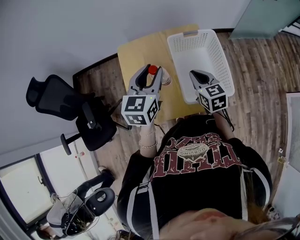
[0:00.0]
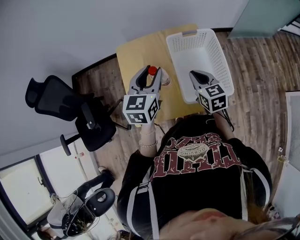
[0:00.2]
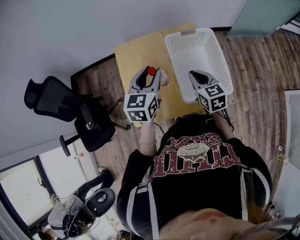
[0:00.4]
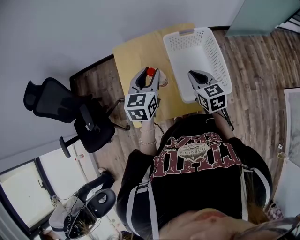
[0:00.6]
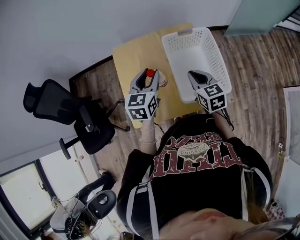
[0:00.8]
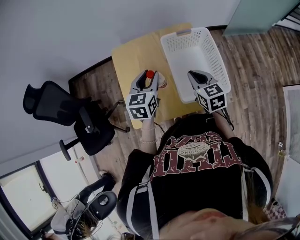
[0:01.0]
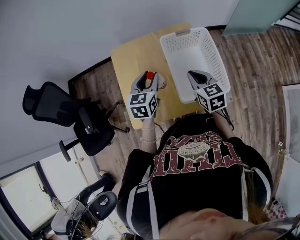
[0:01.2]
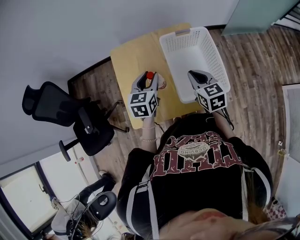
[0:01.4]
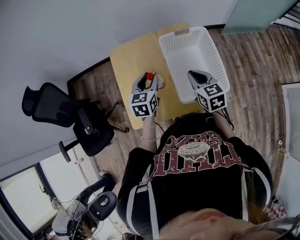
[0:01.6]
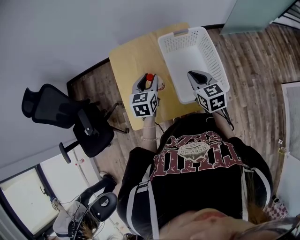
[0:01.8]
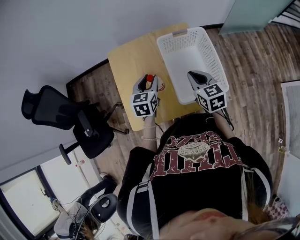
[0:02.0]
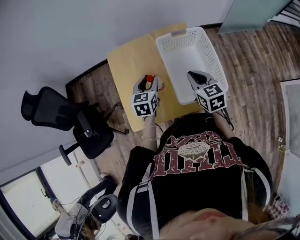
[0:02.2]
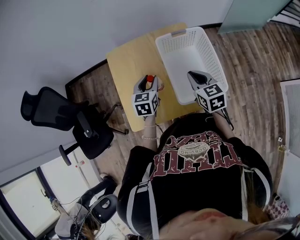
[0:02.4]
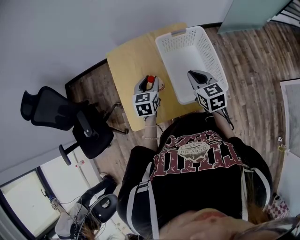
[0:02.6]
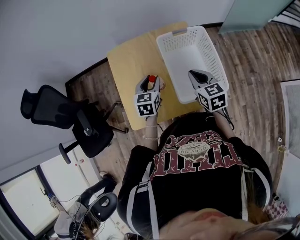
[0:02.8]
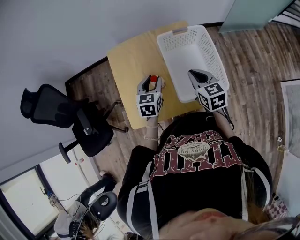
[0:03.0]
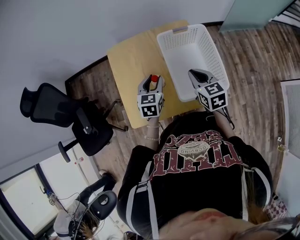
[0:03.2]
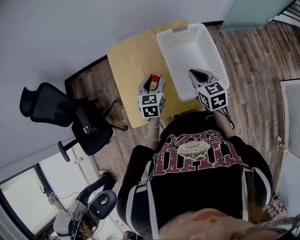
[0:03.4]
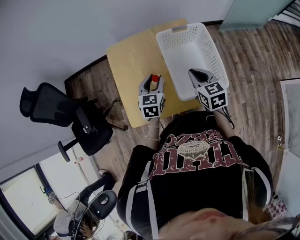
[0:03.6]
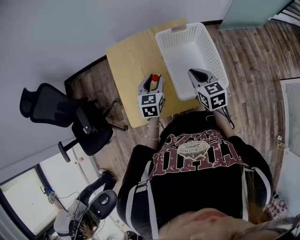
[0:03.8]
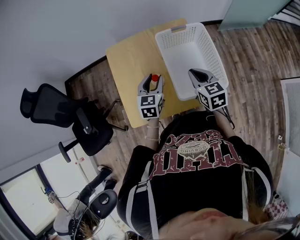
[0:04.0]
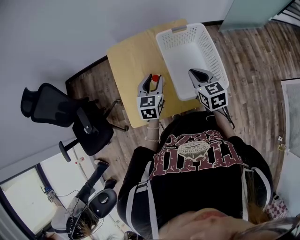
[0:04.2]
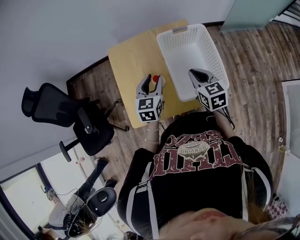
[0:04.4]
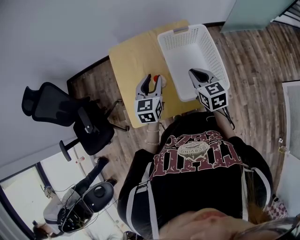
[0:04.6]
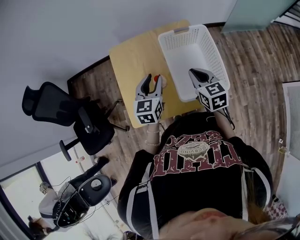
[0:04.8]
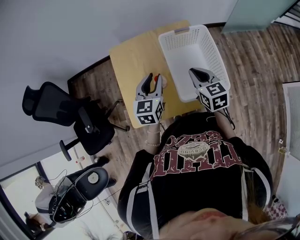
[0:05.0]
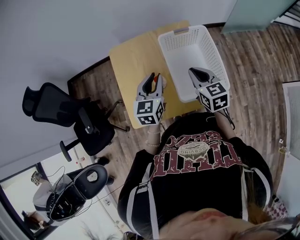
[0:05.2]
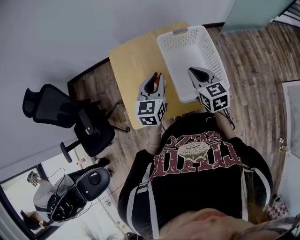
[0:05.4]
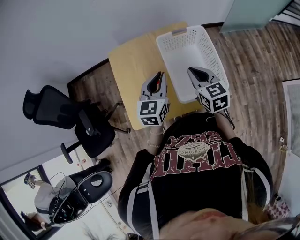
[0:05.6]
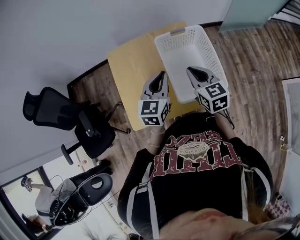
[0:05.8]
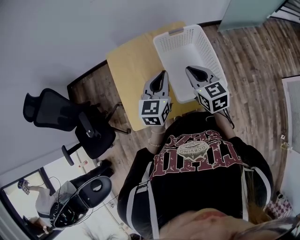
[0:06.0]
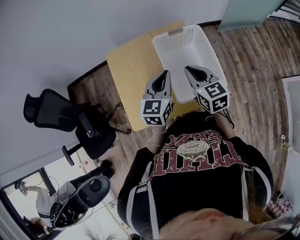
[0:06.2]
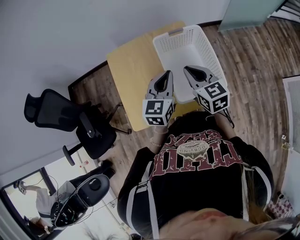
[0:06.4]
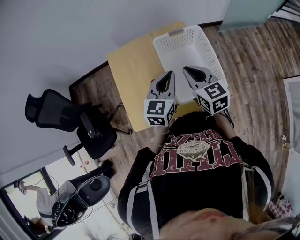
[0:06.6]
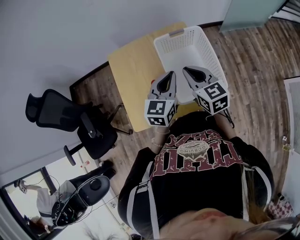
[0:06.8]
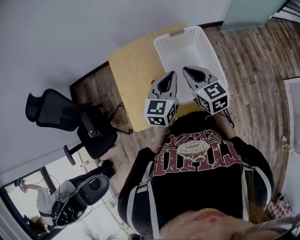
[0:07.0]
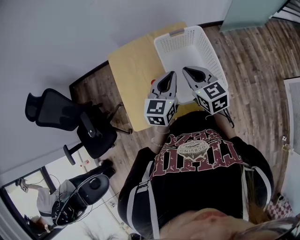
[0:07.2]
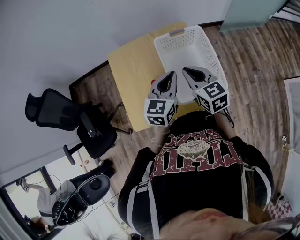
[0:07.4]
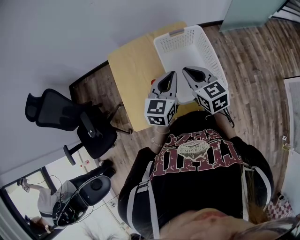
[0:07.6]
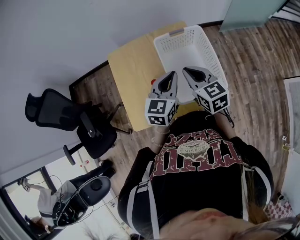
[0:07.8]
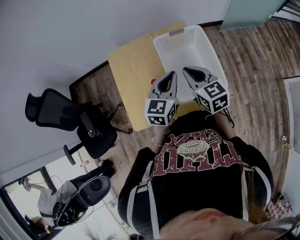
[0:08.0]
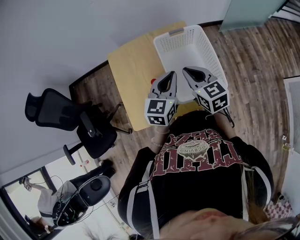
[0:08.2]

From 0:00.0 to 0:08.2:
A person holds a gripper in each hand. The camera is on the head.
From 0:00.0 to 0:01.6: The left gripper travels downward by some 10 cm.
From 0:01.6 to 0:03.2: There are only small adjustments of the grippers.
From 0:03.2 to 0:05.0: The left gripper travels upward by about 5 cm.
From 0:05.0 to 0:06.6: The left gripper moves to the right, about 10 cm, and closes.
From 0:06.6 to 0:08.2: Both grippers stay about where they are.

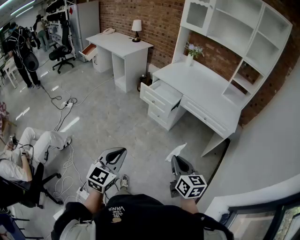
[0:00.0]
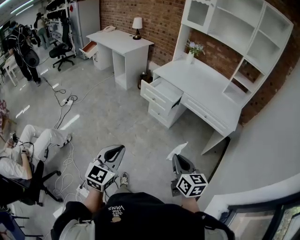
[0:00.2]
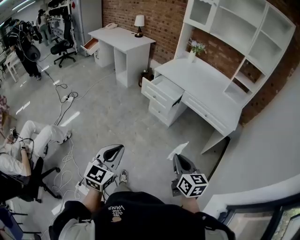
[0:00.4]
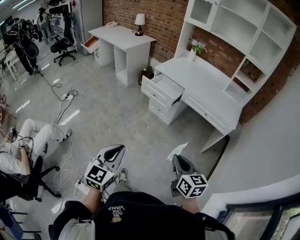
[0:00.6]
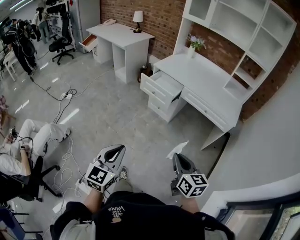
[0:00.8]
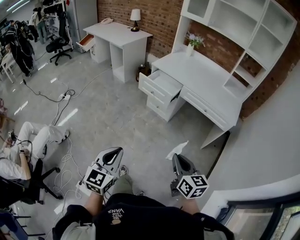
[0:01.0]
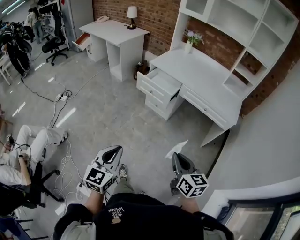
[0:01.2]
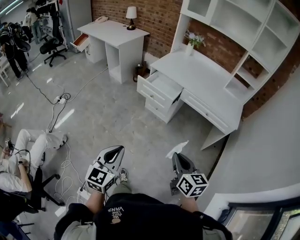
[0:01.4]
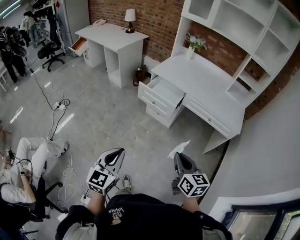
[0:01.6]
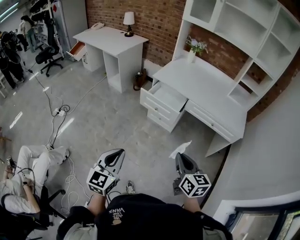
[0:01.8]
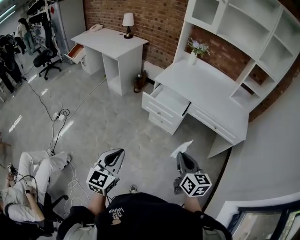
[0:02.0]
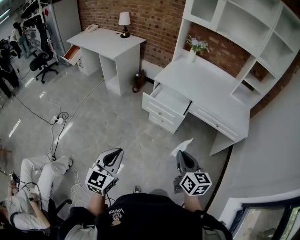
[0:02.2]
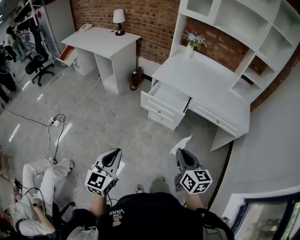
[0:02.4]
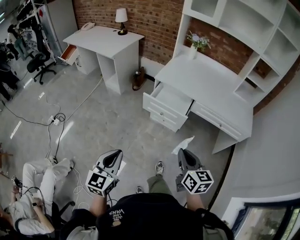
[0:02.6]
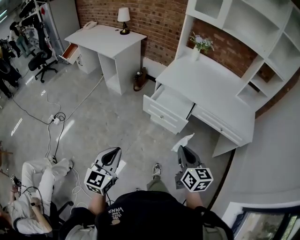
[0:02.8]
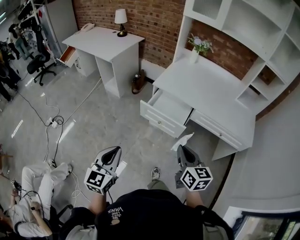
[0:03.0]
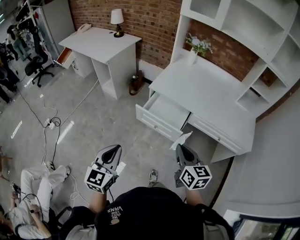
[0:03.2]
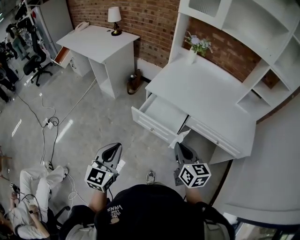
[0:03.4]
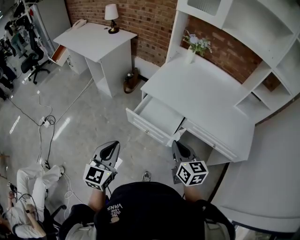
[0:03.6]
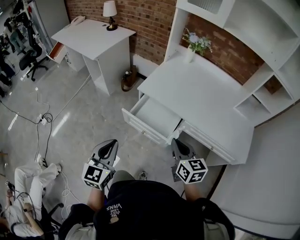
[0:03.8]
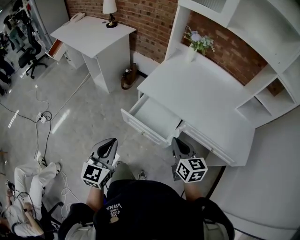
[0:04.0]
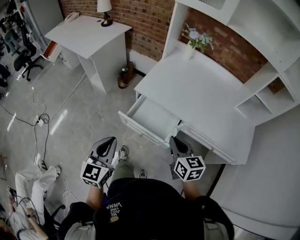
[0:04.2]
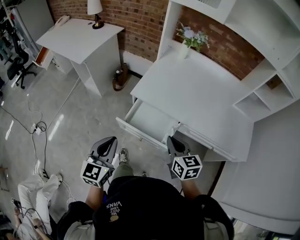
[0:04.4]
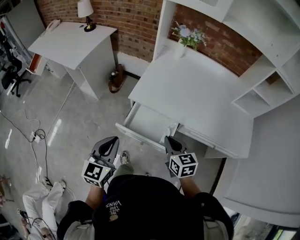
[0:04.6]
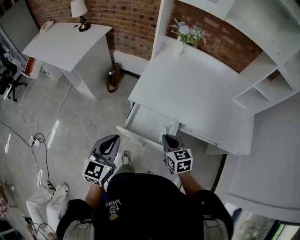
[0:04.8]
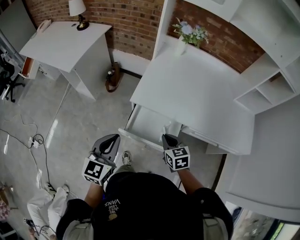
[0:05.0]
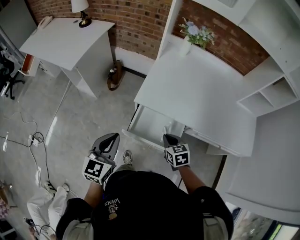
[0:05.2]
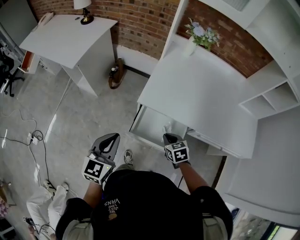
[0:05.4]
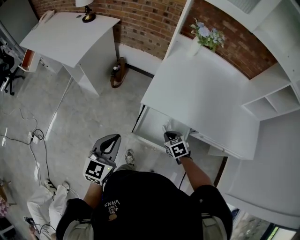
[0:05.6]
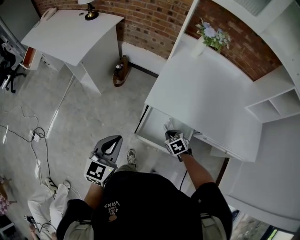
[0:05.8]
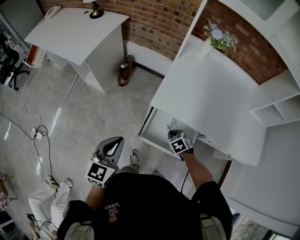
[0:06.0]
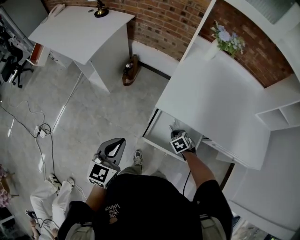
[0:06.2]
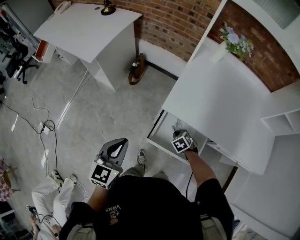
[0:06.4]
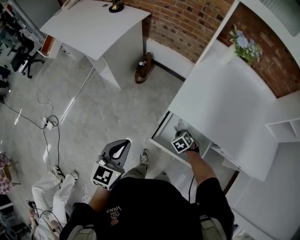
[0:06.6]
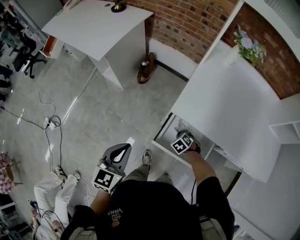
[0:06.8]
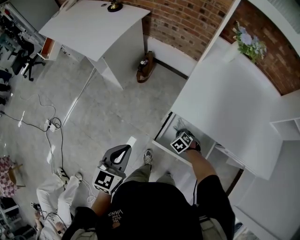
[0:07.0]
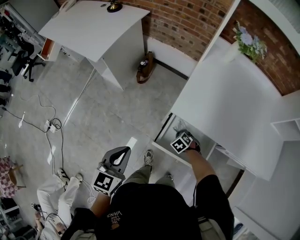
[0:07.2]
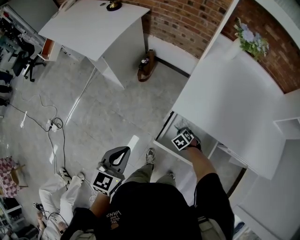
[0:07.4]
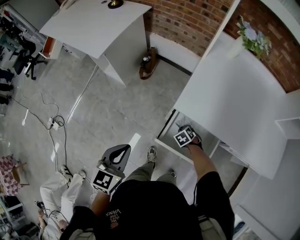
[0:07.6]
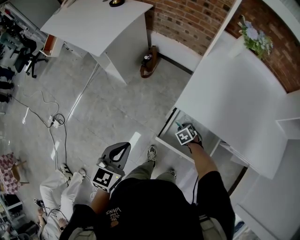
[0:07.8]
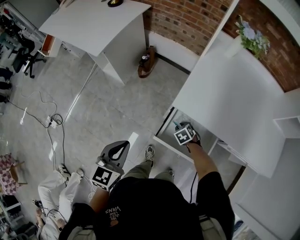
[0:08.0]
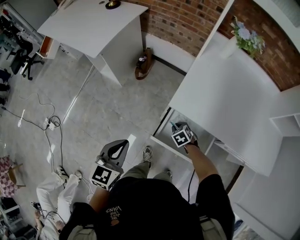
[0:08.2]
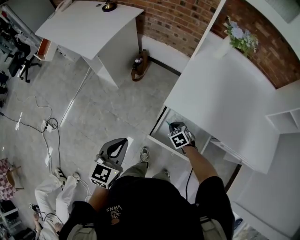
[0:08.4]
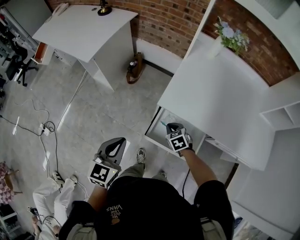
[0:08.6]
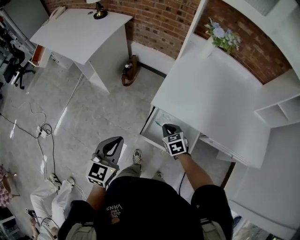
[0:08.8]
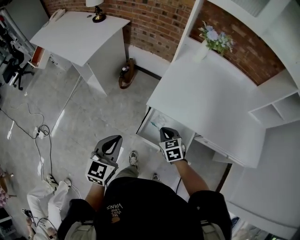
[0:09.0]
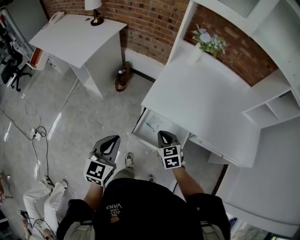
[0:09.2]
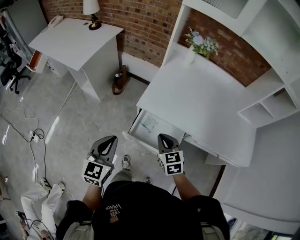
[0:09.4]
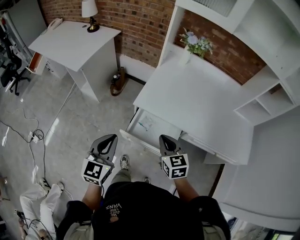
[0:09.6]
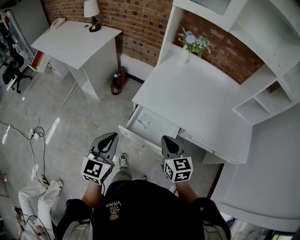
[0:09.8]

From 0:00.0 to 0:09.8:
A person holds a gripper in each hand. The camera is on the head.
From 0:00.0 to 0:01.4: The two grippers go about 10 cm forward.
From 0:01.4 to 0:02.8: Both grippers move forward and to the left, roughly 30 cm.
From 0:02.8 to 0:04.2: The right gripper shifts roughly 30 cm forward. Meanwhile the left gripper moves forward and to the right, approximately 30 cm.
From 0:04.2 to 0:05.6: The left gripper is displaced forward and to the left by roughly 20 cm; the right gripper goes roughly 30 cm downward, forward and to the left, and angles its fingers downward, by some 40 degrees.
From 0:05.6 to 0:07.0: The left gripper ends up some 10 cm from where it was. Meanwhile the right gripper shifts some 15 cm downward, and changes its angle by some 30 degrees.
From 0:07.0 to 0:08.4: The right gripper goes approximately 5 cm upward.
From 0:08.4 to 0:09.8: The left gripper travels to the right, upward and backward by about 20 cm. The right gripper goes roughly 35 cm upward and backward, and points its fingers approximately 40 degrees further upward.

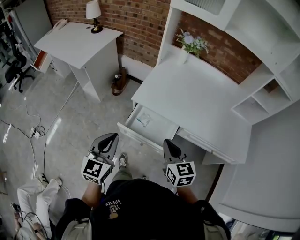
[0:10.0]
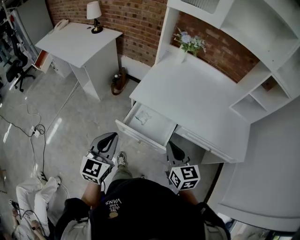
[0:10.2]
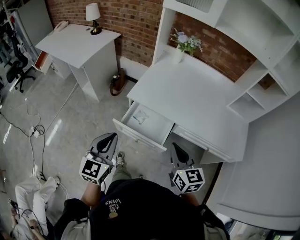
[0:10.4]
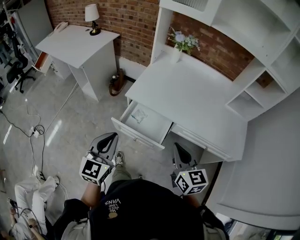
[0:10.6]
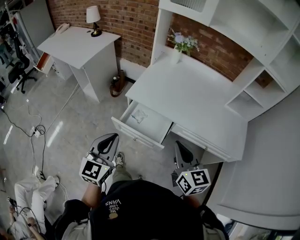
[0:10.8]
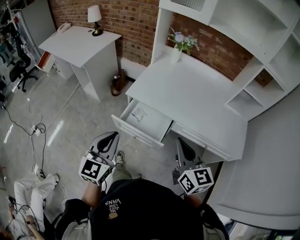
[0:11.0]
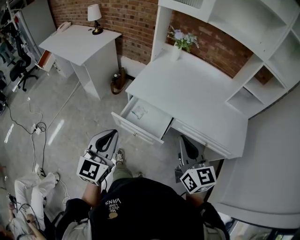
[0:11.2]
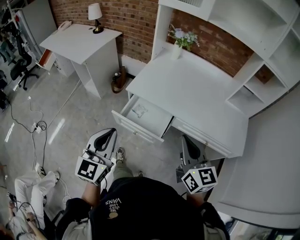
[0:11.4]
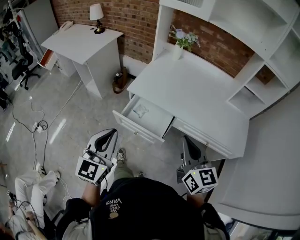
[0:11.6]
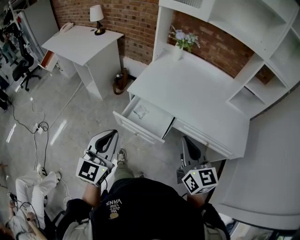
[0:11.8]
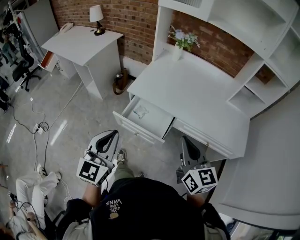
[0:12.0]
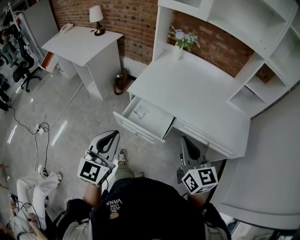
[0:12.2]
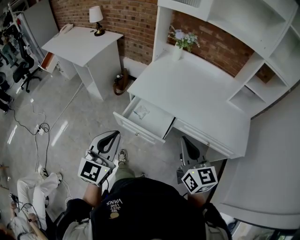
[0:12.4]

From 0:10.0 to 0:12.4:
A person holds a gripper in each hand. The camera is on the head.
From 0:10.0 to 0:11.2: The right gripper goes some 15 cm upward, to the right and backward. The left gripper is displaced backward, to the right and upward by roughly 10 cm.
From 0:11.2 to 0:12.4: There are only small adjustments of the grippers.

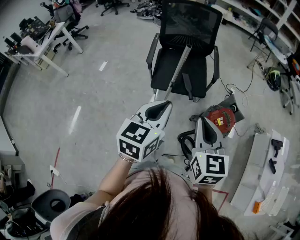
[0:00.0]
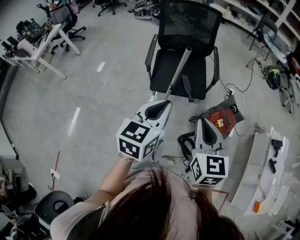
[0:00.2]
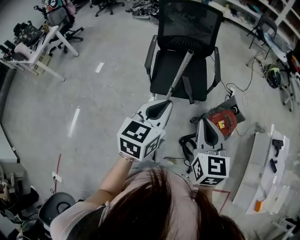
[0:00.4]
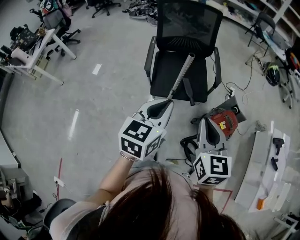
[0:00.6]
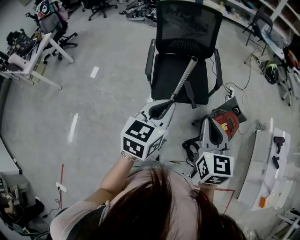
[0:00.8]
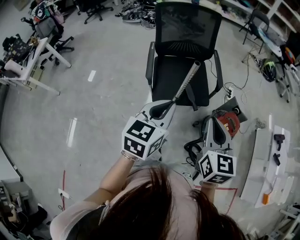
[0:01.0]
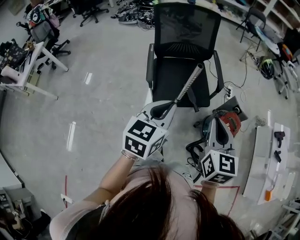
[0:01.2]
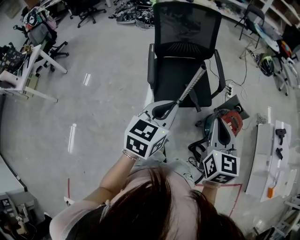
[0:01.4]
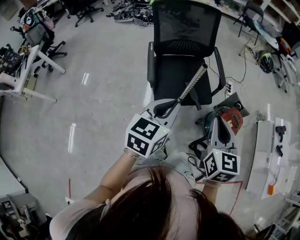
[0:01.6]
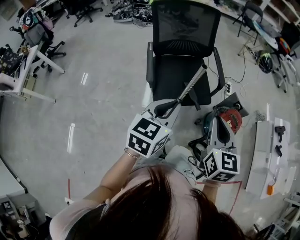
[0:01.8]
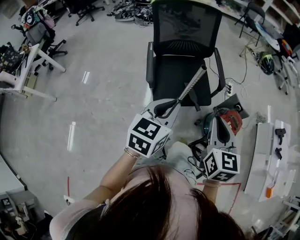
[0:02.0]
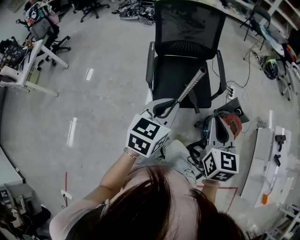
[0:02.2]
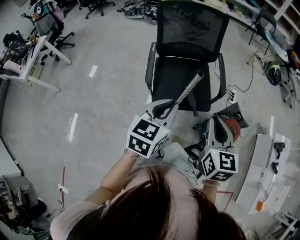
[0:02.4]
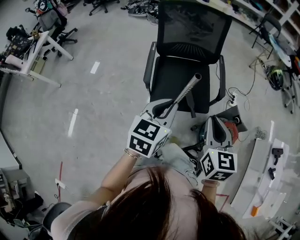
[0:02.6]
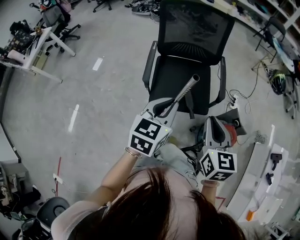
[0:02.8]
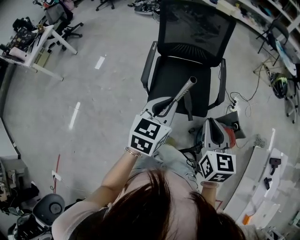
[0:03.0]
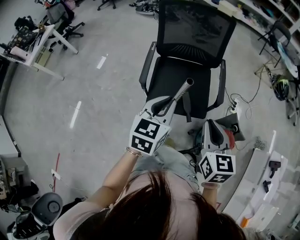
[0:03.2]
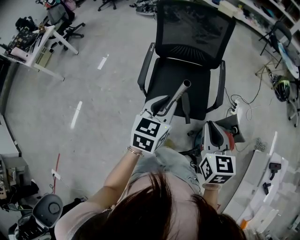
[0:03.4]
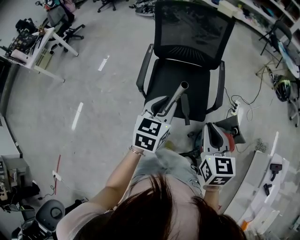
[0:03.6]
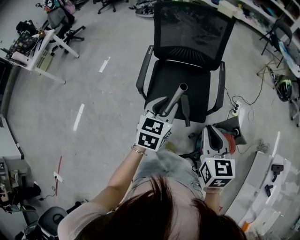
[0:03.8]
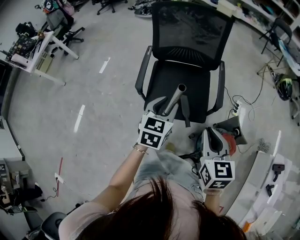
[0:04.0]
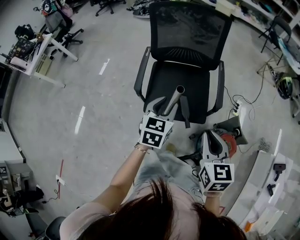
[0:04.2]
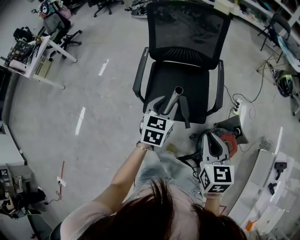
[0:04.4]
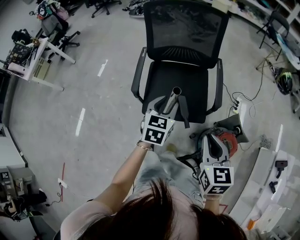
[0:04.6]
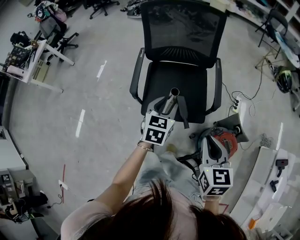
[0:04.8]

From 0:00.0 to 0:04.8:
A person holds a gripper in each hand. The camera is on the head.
From 0:00.0 to 0:01.6: The left gripper goes some 25 cm to the left and forward, while the right gripper travels forward and to the left by about 20 cm, and rotates some 20 degrees.
From 0:01.6 to 0:03.2: Both grippers travel together forward and to the right, approximately 15 cm. The left gripper turns by about 20 degrees. The right gripper changes its angle by approximately 20 degrees.
From 0:03.2 to 0:04.8: The left gripper travels downward and forward by approximately 15 cm, and opens up. The right gripper is displaced to the right and downward by some 10 cm.
